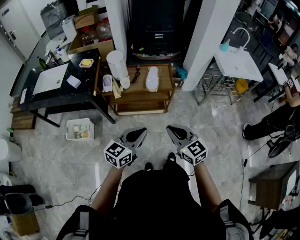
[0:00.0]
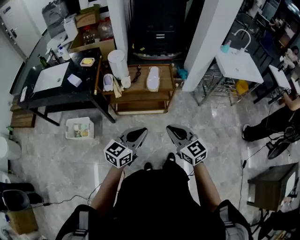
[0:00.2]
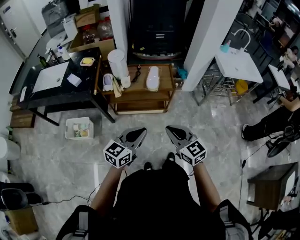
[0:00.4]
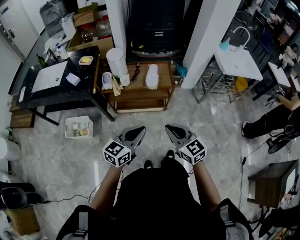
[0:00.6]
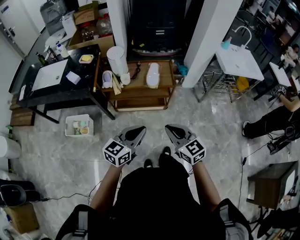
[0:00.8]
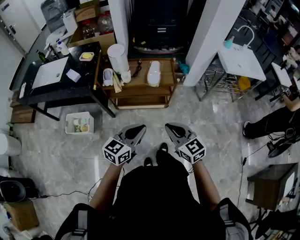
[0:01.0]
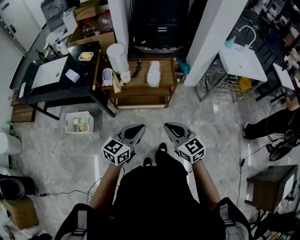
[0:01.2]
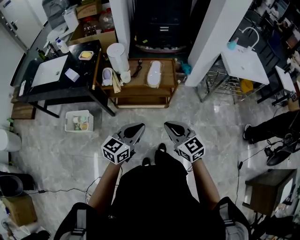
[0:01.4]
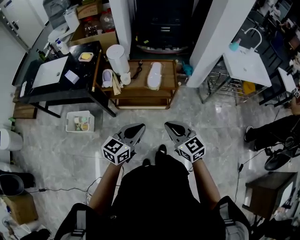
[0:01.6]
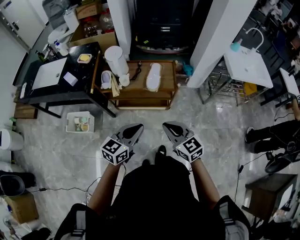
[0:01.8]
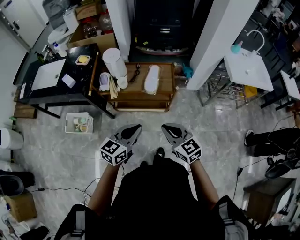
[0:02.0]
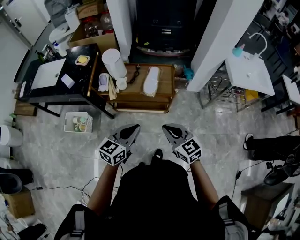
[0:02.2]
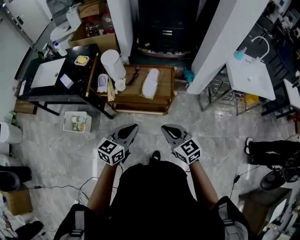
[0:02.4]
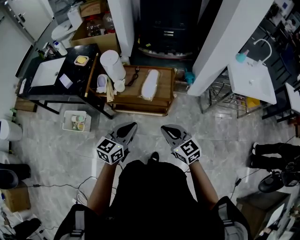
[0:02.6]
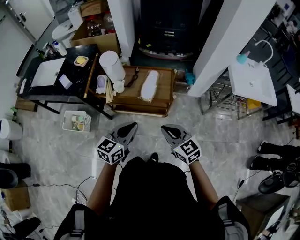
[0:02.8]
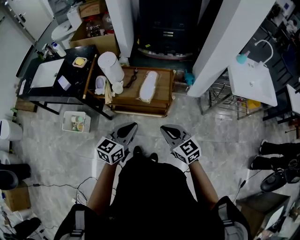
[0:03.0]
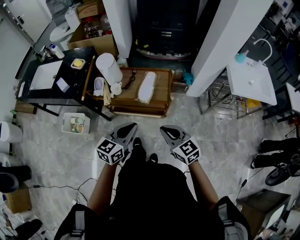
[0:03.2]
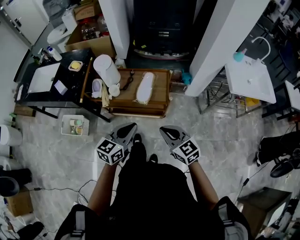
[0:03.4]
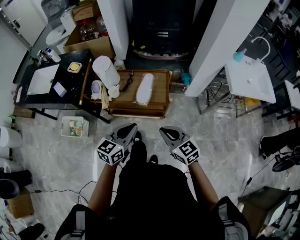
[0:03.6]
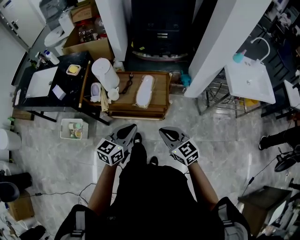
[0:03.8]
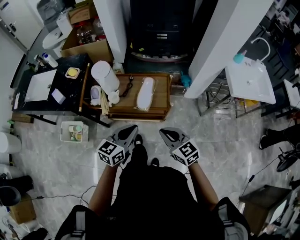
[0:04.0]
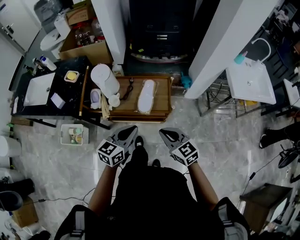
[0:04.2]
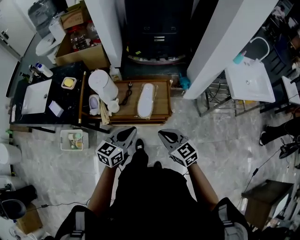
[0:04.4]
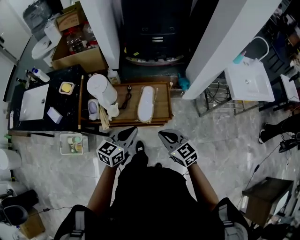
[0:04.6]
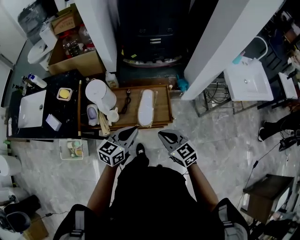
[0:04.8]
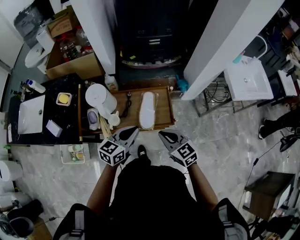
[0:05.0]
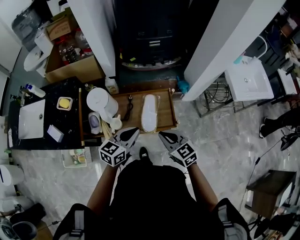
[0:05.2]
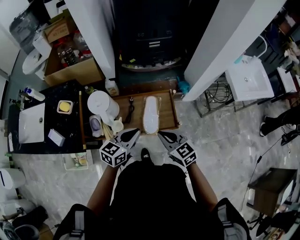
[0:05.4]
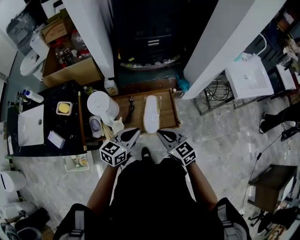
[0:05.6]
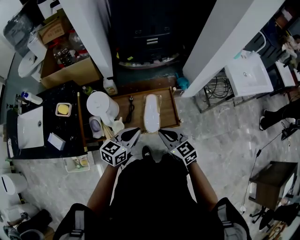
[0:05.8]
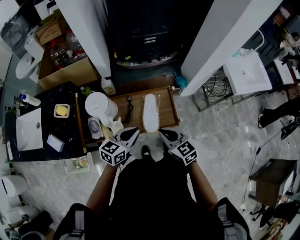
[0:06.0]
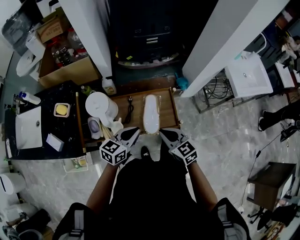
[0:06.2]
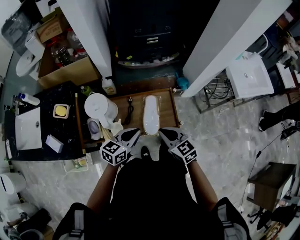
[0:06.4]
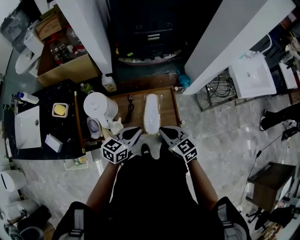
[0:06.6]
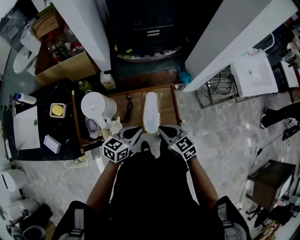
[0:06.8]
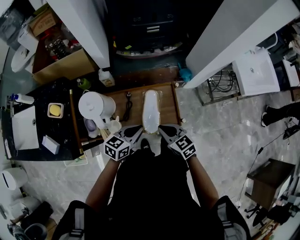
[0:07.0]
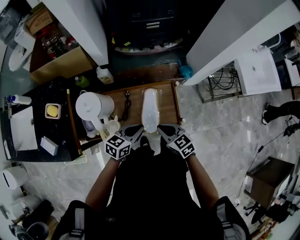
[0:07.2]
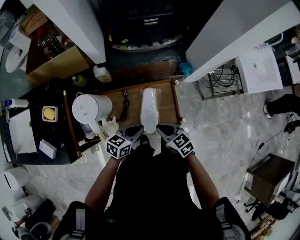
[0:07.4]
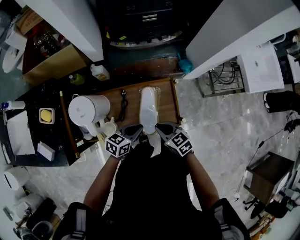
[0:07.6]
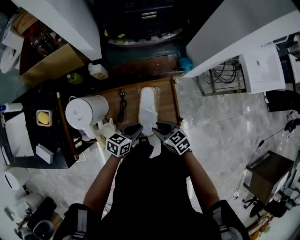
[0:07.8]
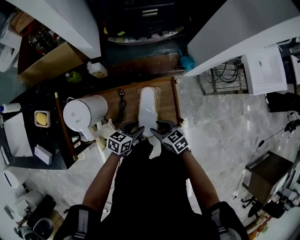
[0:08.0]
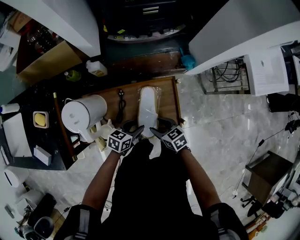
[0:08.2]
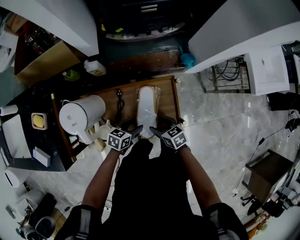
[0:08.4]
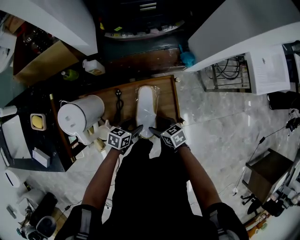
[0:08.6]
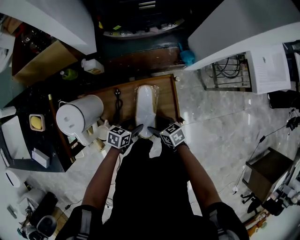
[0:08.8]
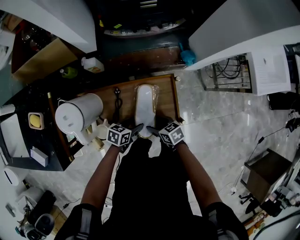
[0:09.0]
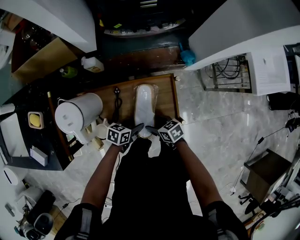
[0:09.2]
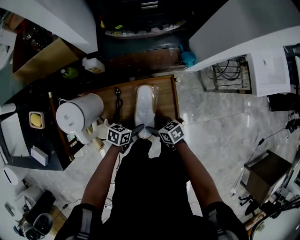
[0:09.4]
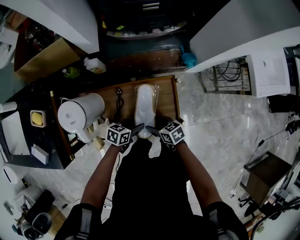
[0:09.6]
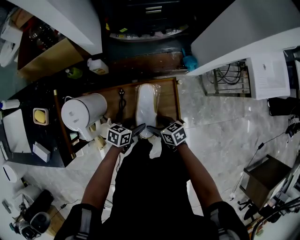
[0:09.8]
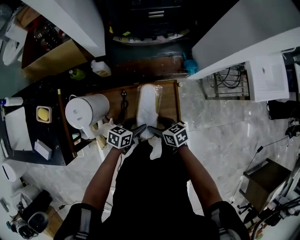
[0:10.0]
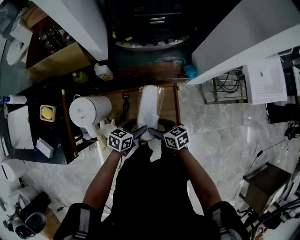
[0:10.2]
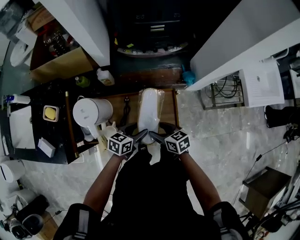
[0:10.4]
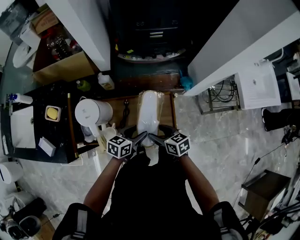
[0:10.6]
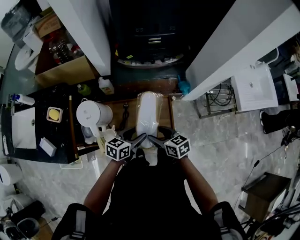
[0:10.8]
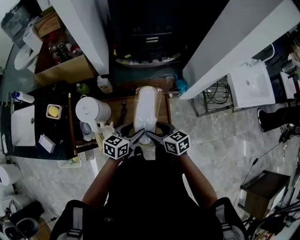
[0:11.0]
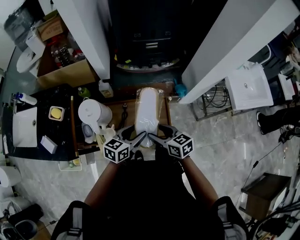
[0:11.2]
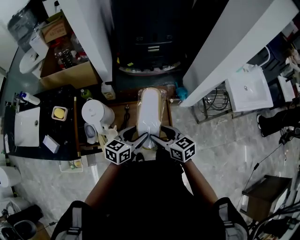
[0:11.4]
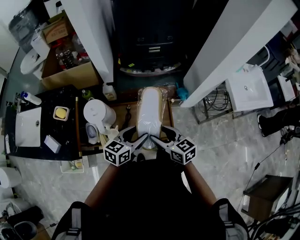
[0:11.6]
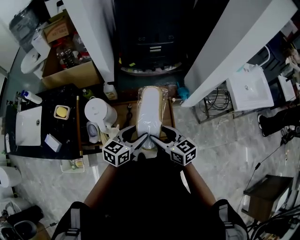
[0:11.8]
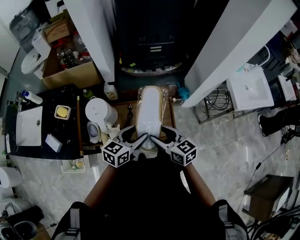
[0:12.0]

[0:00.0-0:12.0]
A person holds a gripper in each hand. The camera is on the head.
0.0 to 1.6 s: Both grippers move forward, about 5 cm.
1.6 to 3.0 s: Both grippers travel together forward and to the right, about 15 cm.
3.0 to 4.4 s: The two grippers go about 10 cm forward.
4.4 to 6.0 s: The two grippers go about 15 cm forward and to the left.
6.0 to 7.6 s: The left gripper is displaced downward by approximately 15 cm; the right gripper heads downward and forward, covering roughly 15 cm.
7.6 to 9.0 s: Both grippers move downward, some 15 cm. The left gripper opens. The right gripper turns by roughly 20 degrees, and opens its fingers.
9.0 to 10.4 s: The grippers both shift upward by roughly 15 cm.
10.4 to 12.0 s: The grippers both shift upward by approximately 20 cm. The right gripper rotates some 20 degrees.

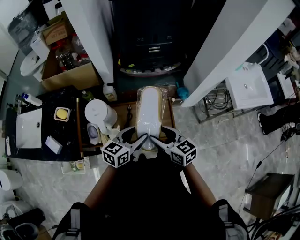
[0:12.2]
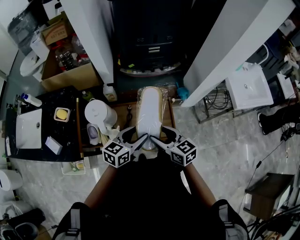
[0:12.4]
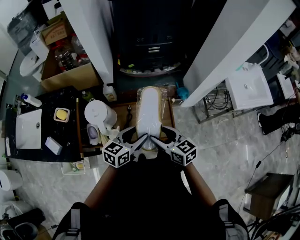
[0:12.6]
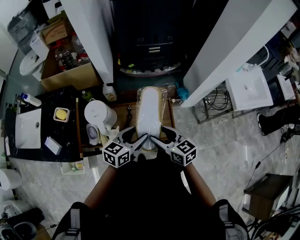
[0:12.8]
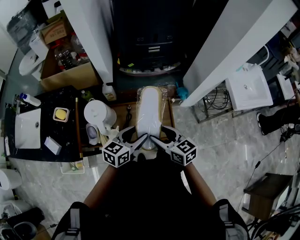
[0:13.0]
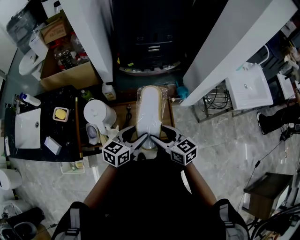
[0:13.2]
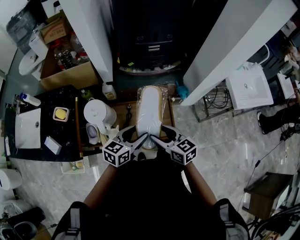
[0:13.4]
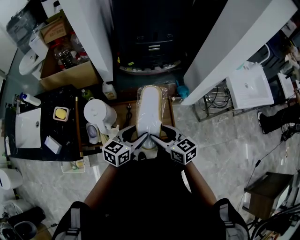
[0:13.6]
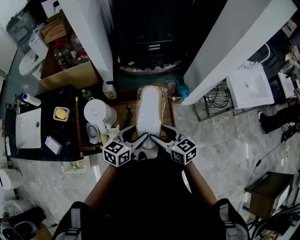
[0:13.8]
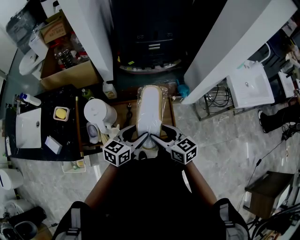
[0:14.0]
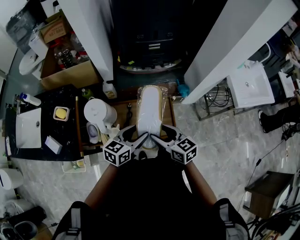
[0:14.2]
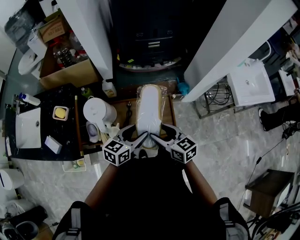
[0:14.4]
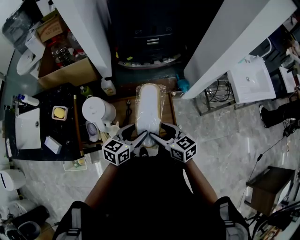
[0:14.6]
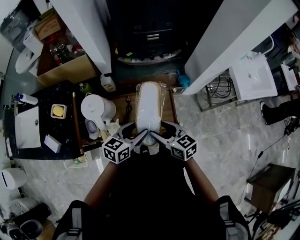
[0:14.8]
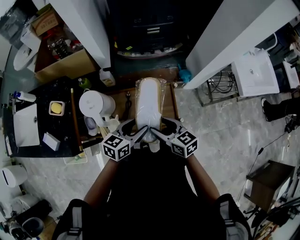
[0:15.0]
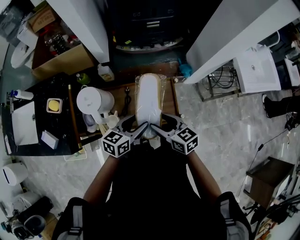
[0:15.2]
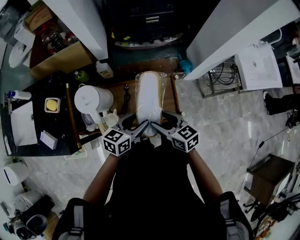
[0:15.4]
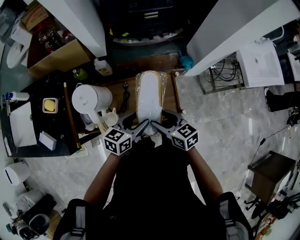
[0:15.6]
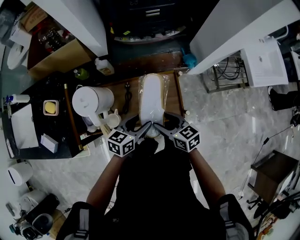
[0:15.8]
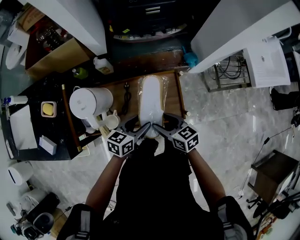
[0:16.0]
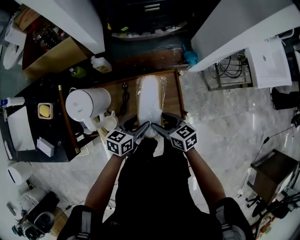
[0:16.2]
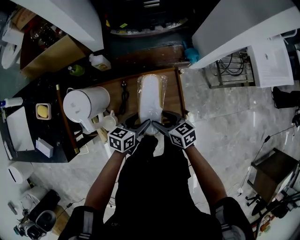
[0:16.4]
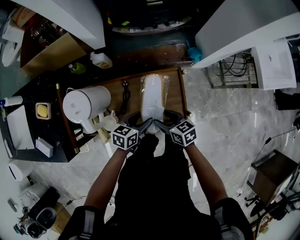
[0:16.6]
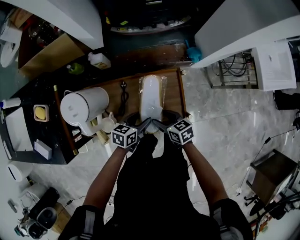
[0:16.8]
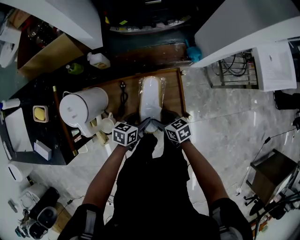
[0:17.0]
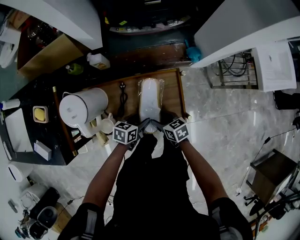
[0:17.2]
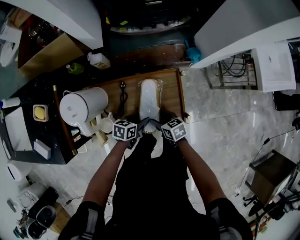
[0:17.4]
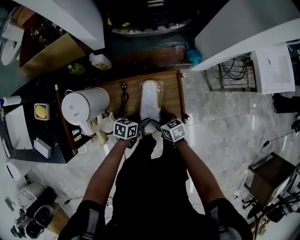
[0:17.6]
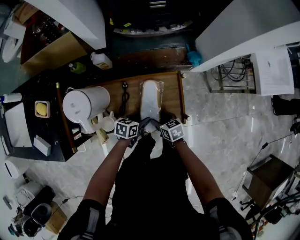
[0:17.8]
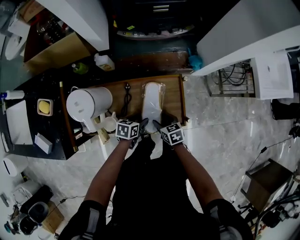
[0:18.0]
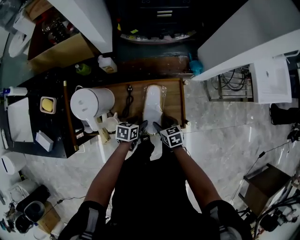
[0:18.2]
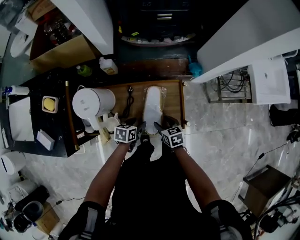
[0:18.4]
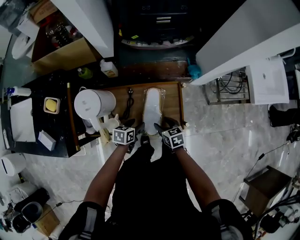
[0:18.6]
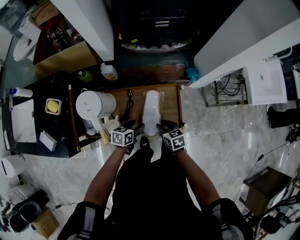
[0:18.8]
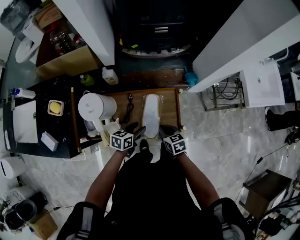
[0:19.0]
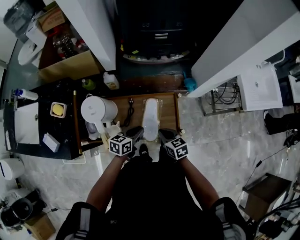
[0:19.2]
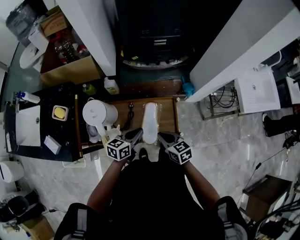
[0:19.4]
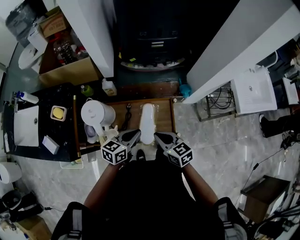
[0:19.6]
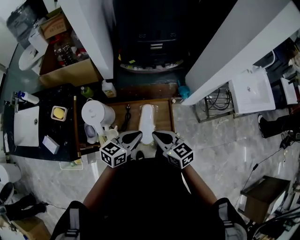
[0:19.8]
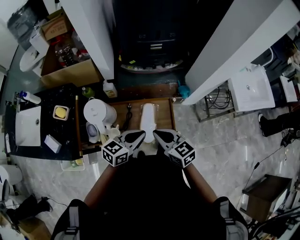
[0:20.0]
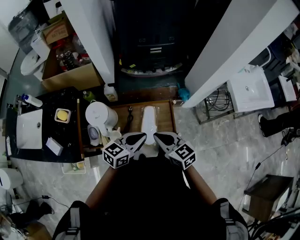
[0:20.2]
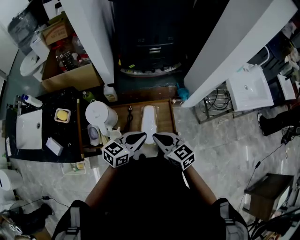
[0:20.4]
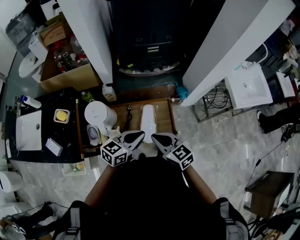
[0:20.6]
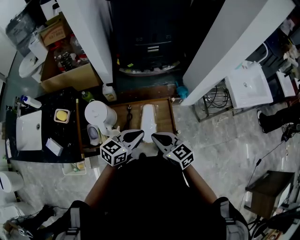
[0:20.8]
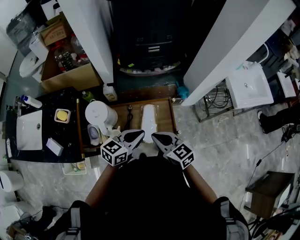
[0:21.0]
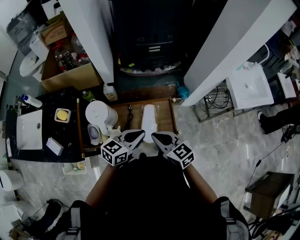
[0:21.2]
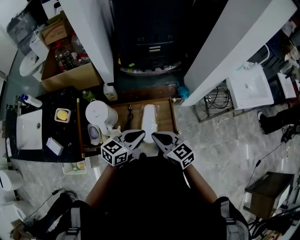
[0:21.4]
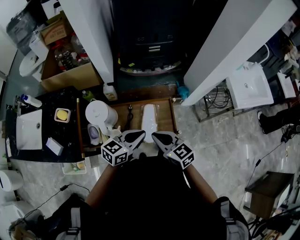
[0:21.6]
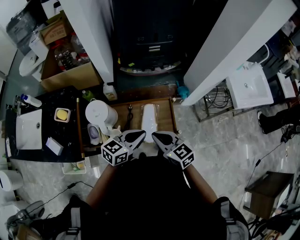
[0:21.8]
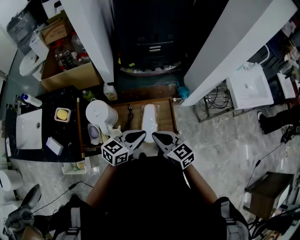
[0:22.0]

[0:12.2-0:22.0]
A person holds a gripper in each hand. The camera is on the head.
12.2 to 13.6 s: Both grippers stay put.
13.6 to 15.0 s: The grippers stay close to where they were, moving slightly.
15.0 to 16.4 s: The grippers both shift downward by roughly 15 cm.
16.4 to 17.8 s: Both grippers travel together downward, some 10 cm.
17.8 to 19.2 s: Both grippers move upward, approximately 15 cm. The right gripper closes up; the left gripper closes.
19.2 to 20.6 s: Both grippers travel together upward, approximately 15 cm. The left gripper turns by about 20 degrees. The right gripper turns by approximately 20 degrees.
20.6 to 22.0 s: Both grippers stay about where they are.

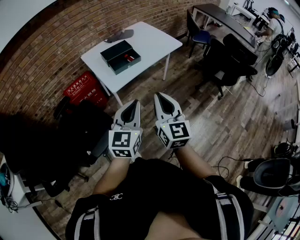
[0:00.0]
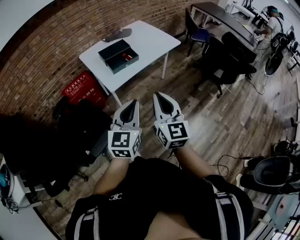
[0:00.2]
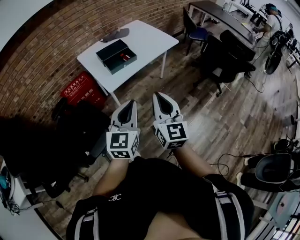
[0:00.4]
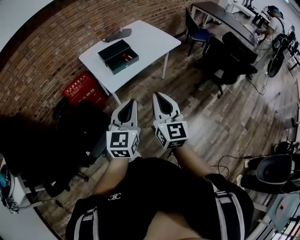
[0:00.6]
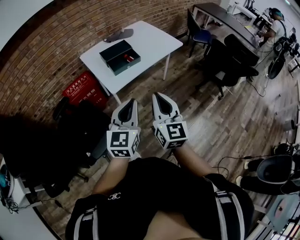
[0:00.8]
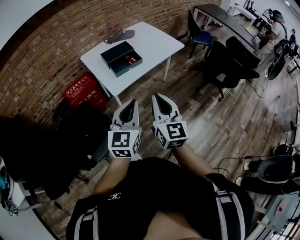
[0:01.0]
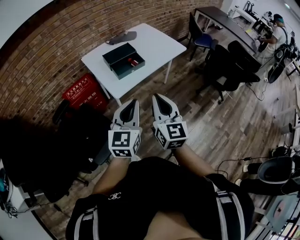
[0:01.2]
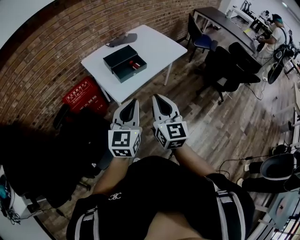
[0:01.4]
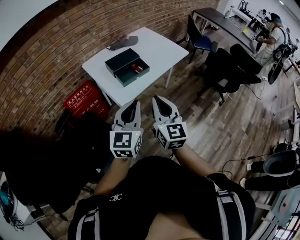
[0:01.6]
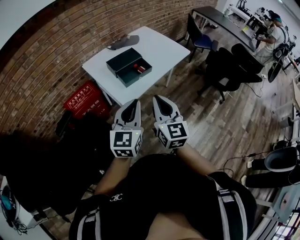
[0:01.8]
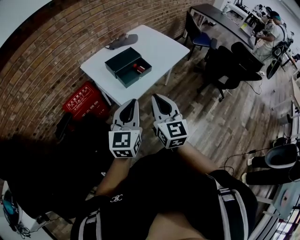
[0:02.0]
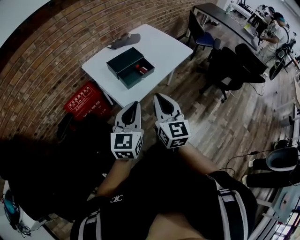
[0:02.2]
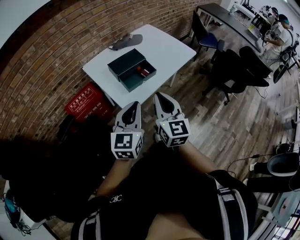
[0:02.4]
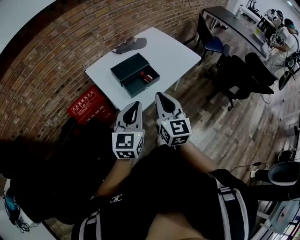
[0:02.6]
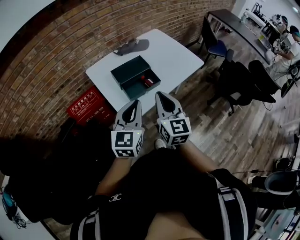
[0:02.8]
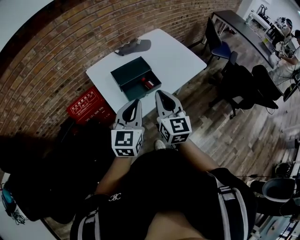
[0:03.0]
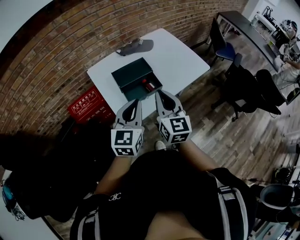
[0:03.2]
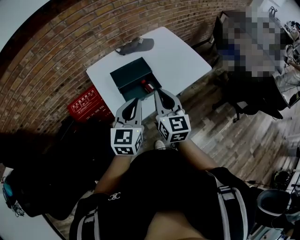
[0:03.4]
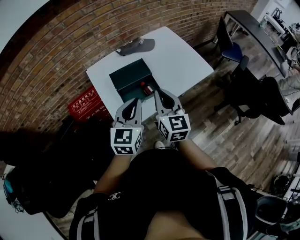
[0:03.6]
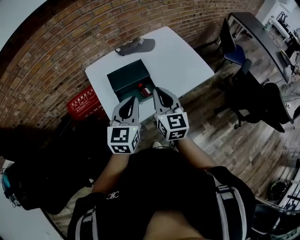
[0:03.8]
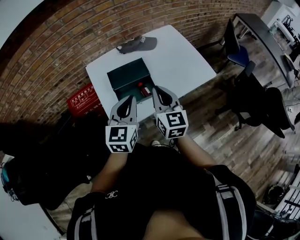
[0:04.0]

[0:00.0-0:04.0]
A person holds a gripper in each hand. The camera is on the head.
0.0 to 1.4 s: The grippers both shift forward and to the left by about 10 cm.
1.4 to 2.6 s: The right gripper moves forward, roughly 15 cm. Meanwhile the left gripper travels forward and to the left by some 15 cm.
2.6 to 4.0 s: Both grippers move forward and to the right, approximately 20 cm.
